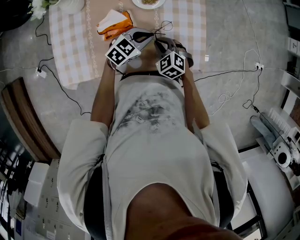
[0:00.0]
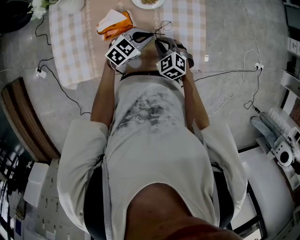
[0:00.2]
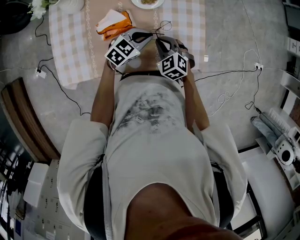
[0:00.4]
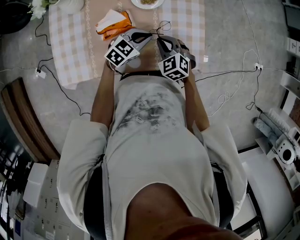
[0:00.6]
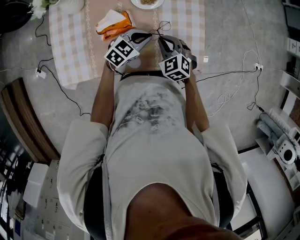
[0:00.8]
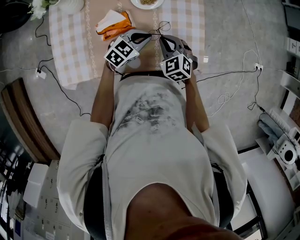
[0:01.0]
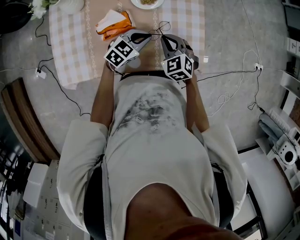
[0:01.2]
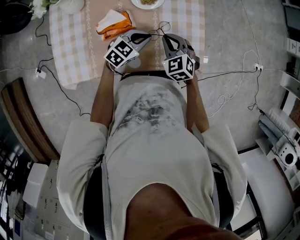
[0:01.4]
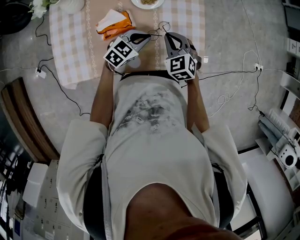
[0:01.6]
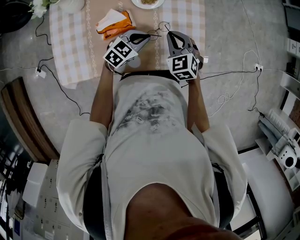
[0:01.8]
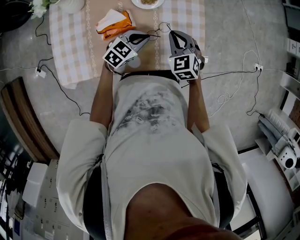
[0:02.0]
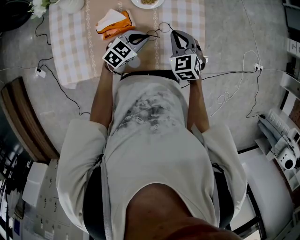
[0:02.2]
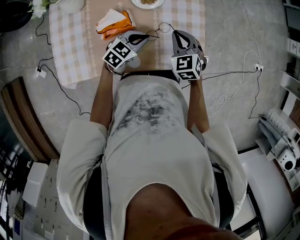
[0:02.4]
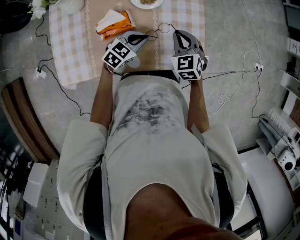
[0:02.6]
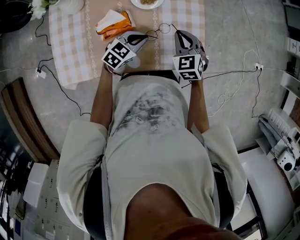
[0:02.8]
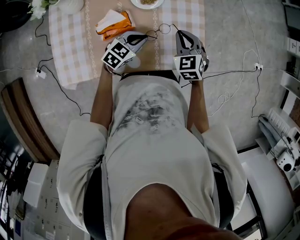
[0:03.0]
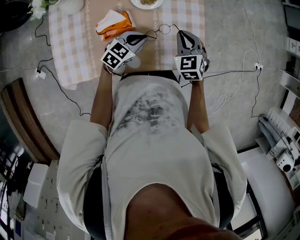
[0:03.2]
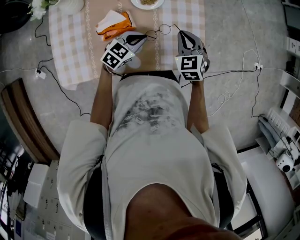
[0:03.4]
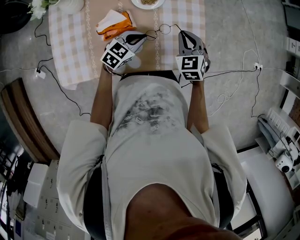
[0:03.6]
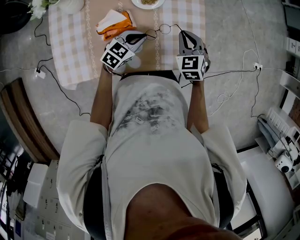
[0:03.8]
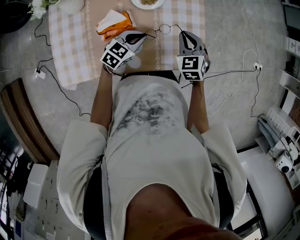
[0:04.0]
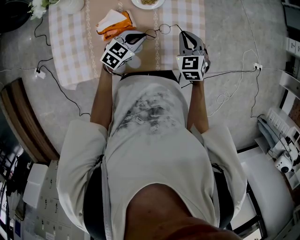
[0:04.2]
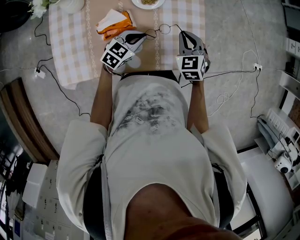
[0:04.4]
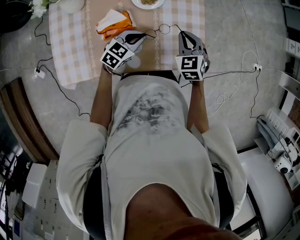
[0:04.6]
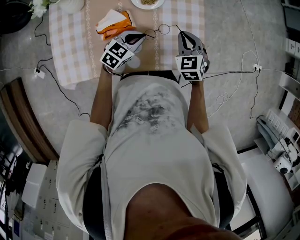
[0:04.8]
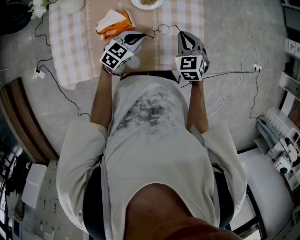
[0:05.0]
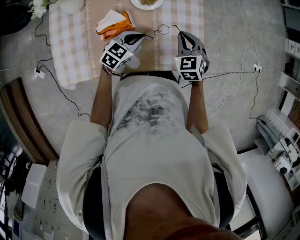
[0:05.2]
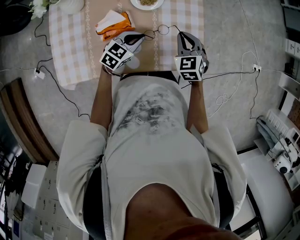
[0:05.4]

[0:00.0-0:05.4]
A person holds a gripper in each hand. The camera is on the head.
0:00.0 to 0:01.4: The right gripper moves upward, roughly 5 cm.
0:01.4 to 0:02.8: The right gripper moves approximately 5 cm.
0:02.8 to 0:04.0: The grippers stay close to where they were, moving slightly.
0:04.0 to 0:05.4: Neither gripper changes place.

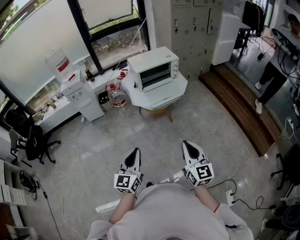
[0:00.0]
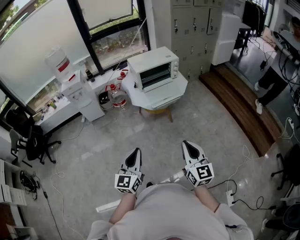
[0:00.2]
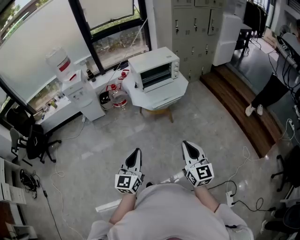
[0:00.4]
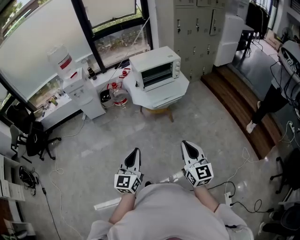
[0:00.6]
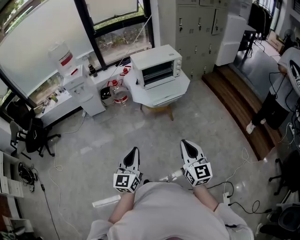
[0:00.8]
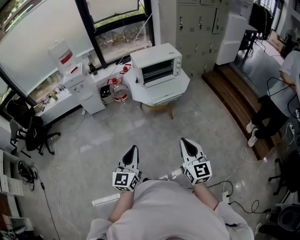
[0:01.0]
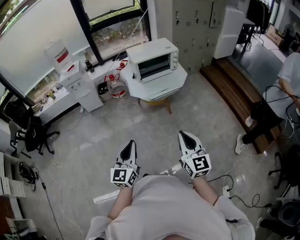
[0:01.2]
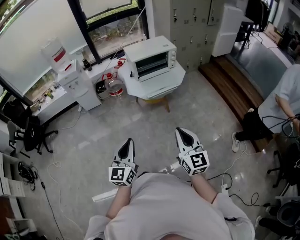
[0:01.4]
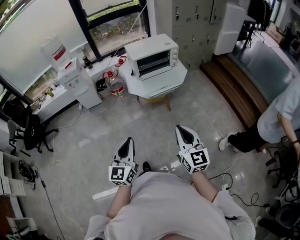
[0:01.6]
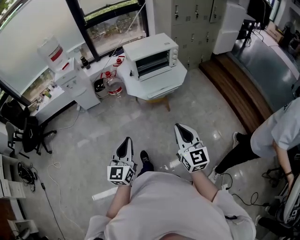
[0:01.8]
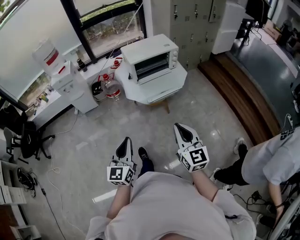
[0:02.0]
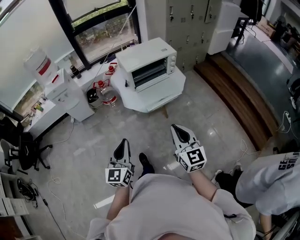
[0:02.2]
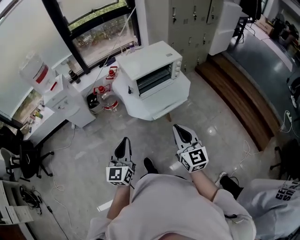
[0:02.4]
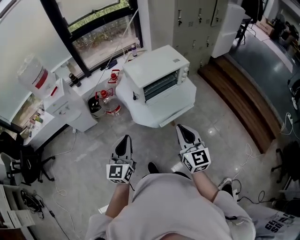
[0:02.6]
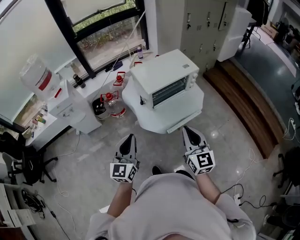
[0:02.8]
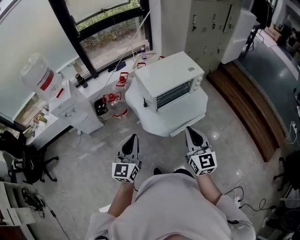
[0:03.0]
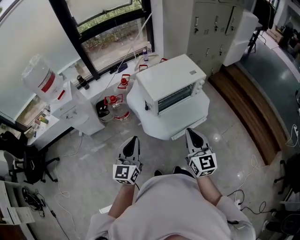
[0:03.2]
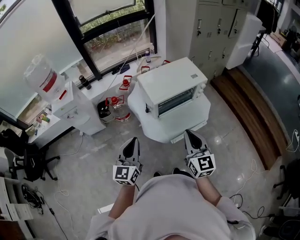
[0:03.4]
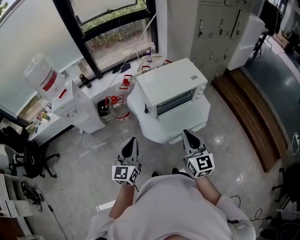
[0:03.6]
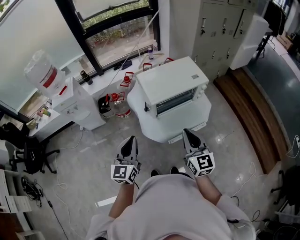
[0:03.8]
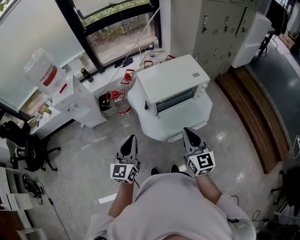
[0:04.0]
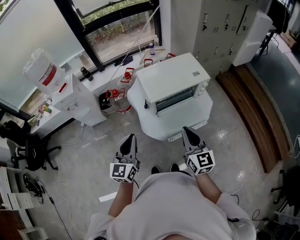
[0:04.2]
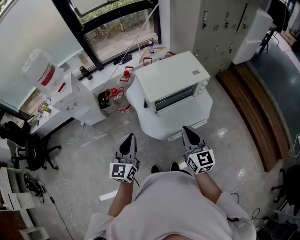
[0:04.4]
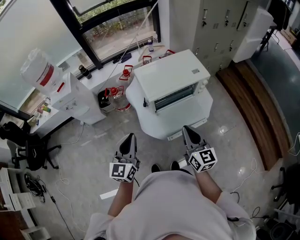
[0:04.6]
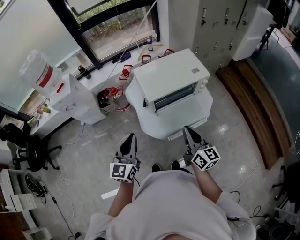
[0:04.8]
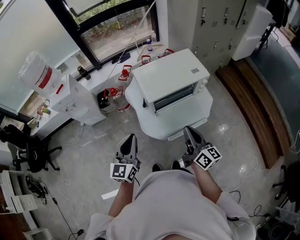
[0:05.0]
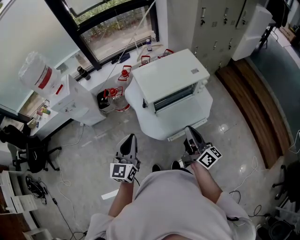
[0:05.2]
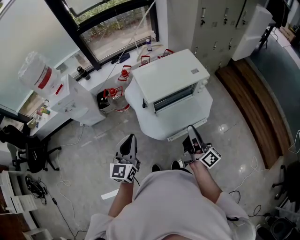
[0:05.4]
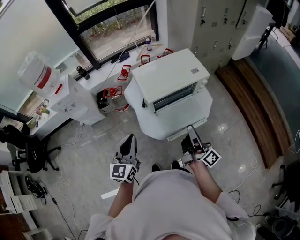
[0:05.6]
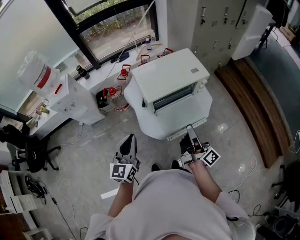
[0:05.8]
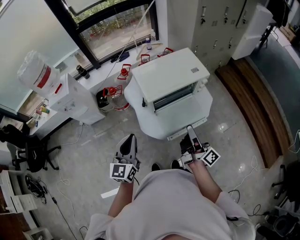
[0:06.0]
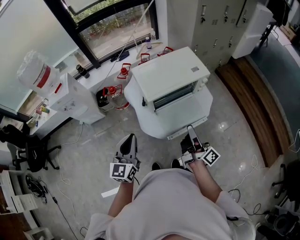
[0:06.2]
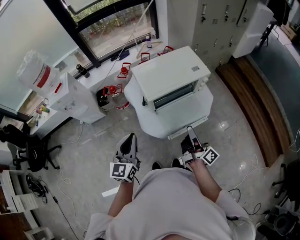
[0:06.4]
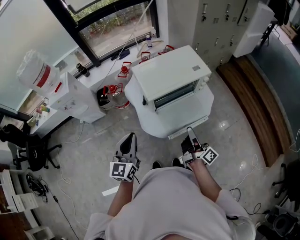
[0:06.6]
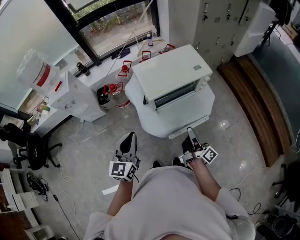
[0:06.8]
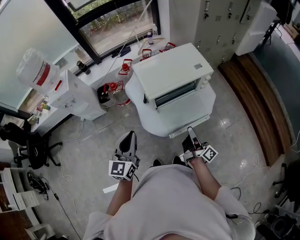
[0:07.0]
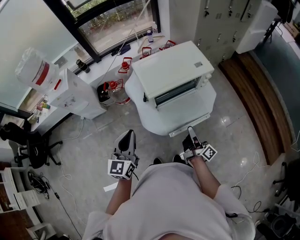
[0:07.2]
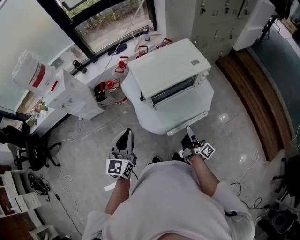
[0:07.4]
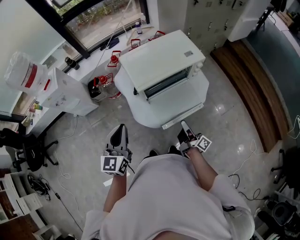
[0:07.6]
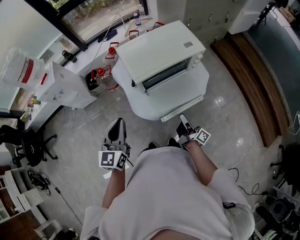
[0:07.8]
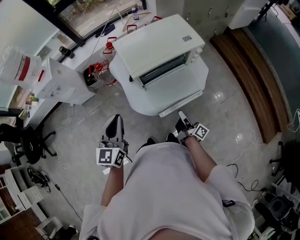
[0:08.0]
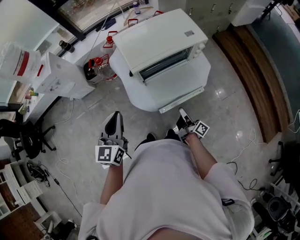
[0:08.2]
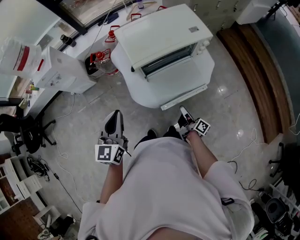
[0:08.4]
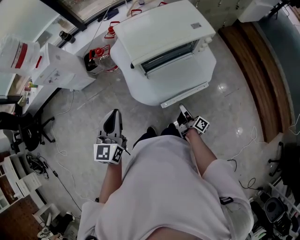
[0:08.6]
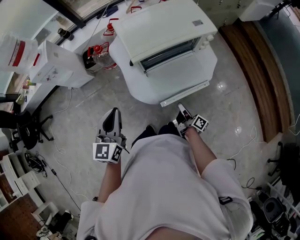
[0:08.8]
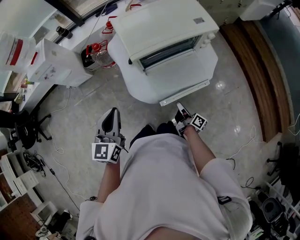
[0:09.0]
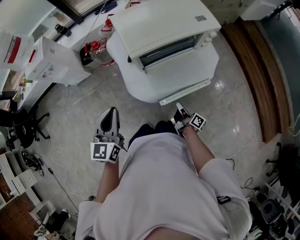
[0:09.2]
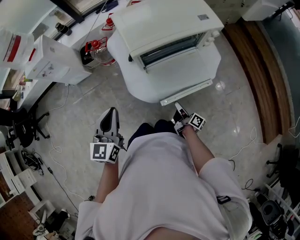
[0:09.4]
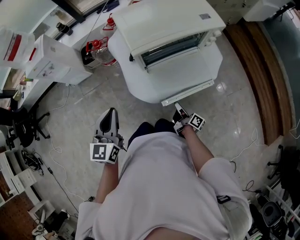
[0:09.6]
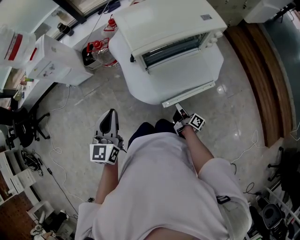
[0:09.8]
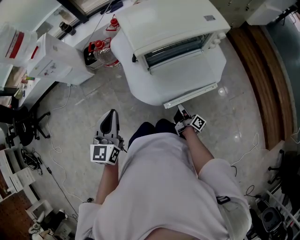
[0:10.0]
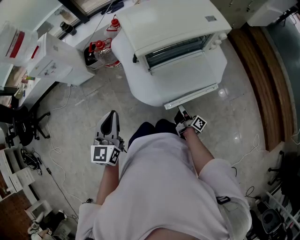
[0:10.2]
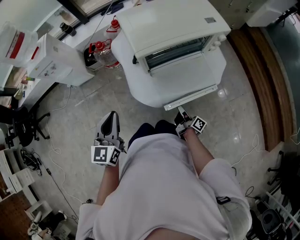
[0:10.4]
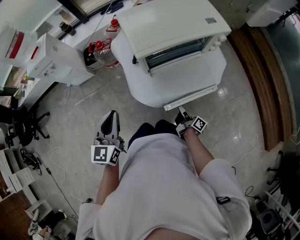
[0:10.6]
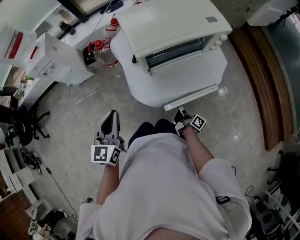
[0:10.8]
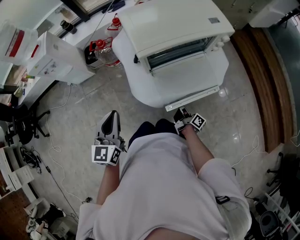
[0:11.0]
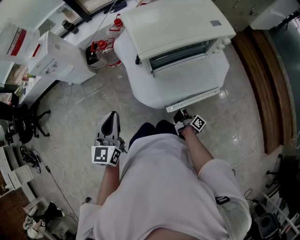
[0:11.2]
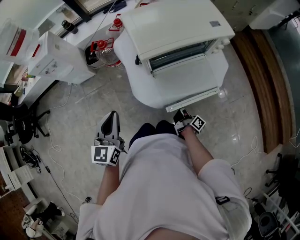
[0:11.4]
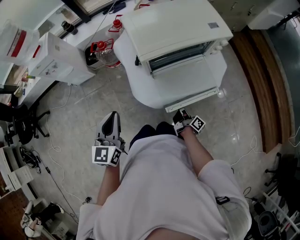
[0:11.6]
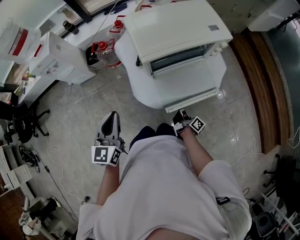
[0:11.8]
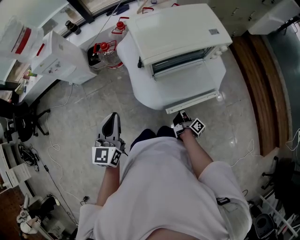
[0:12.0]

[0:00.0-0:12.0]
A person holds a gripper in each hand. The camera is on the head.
0:00.0 to 0:01.6: The grippers make only small movements.
0:01.6 to 0:03.0: Both grippers move forward, roughly 35 cm.
0:03.0 to 0:04.4: The left gripper changes place by some 5 cm; the right gripper heads forward, covering about 5 cm.
0:04.4 to 0:06.0: The right gripper rotates around the line of its fingers by some 70 degrees, clockwise from behind.
0:06.0 to 0:07.6: The right gripper travels downward by roughly 20 cm.
0:07.6 to 0:09.0: The left gripper travels downward by roughly 5 cm. The right gripper travels downward by some 15 cm.
0:09.0 to 0:10.4: Both grippers travel together downward, approximately 5 cm. The right gripper opens up.
0:10.4 to 0:12.0: The grippers move only a little.

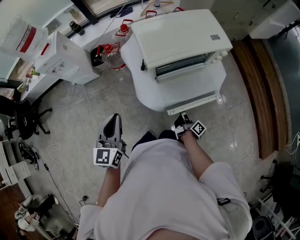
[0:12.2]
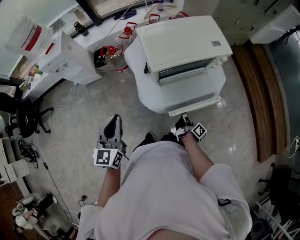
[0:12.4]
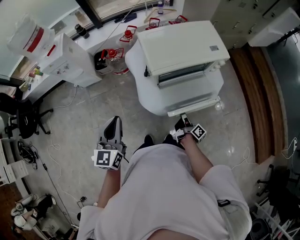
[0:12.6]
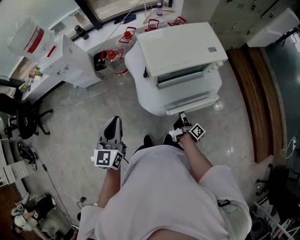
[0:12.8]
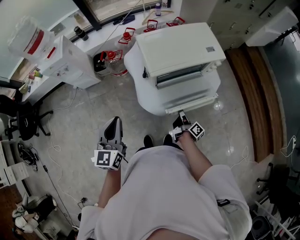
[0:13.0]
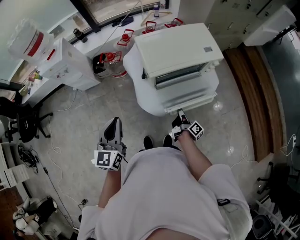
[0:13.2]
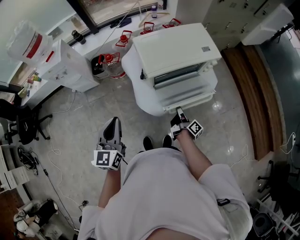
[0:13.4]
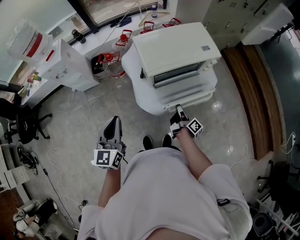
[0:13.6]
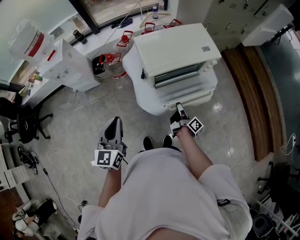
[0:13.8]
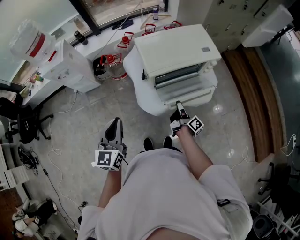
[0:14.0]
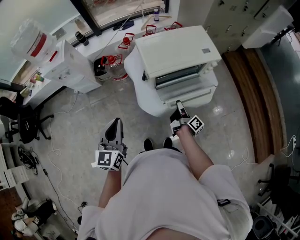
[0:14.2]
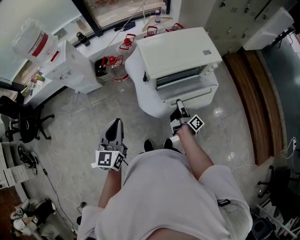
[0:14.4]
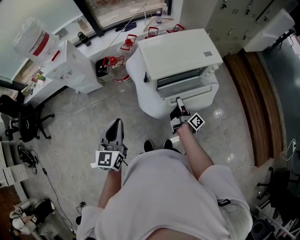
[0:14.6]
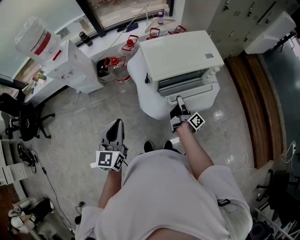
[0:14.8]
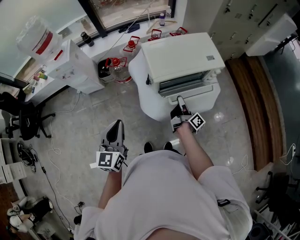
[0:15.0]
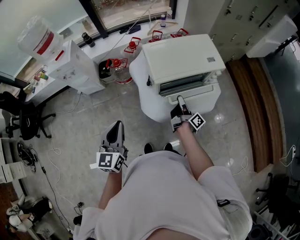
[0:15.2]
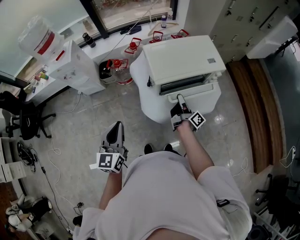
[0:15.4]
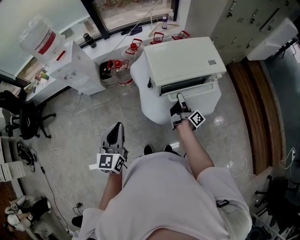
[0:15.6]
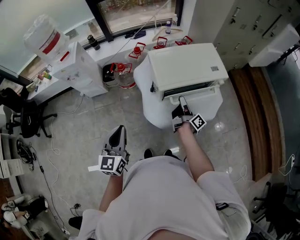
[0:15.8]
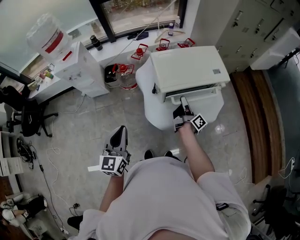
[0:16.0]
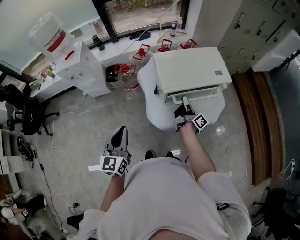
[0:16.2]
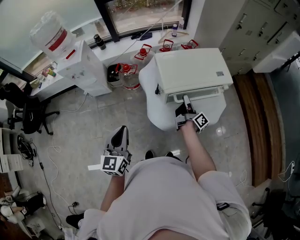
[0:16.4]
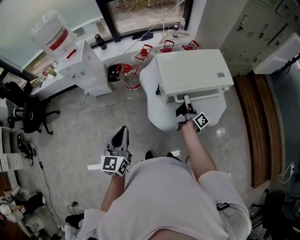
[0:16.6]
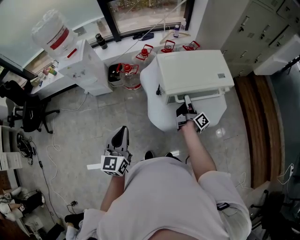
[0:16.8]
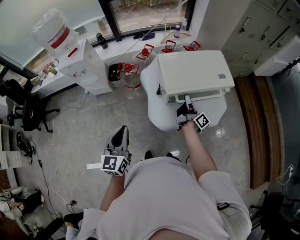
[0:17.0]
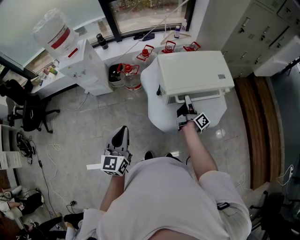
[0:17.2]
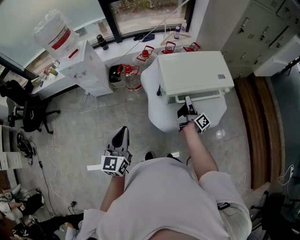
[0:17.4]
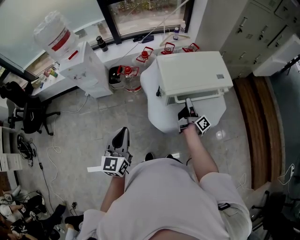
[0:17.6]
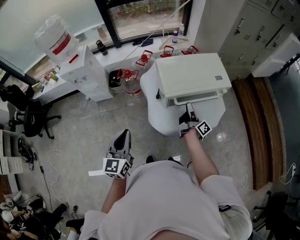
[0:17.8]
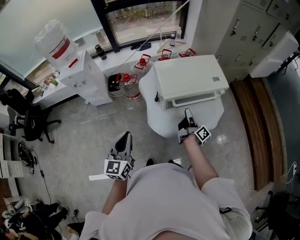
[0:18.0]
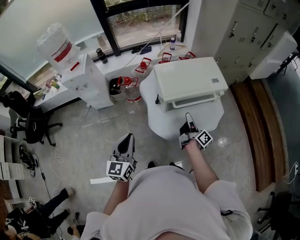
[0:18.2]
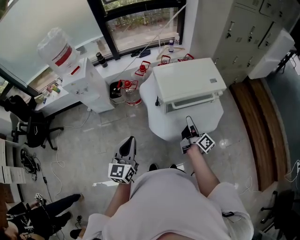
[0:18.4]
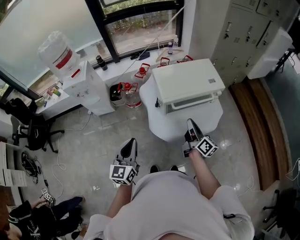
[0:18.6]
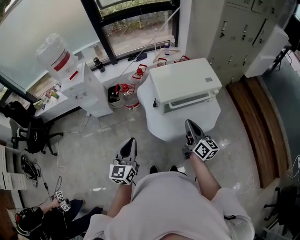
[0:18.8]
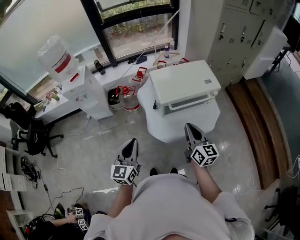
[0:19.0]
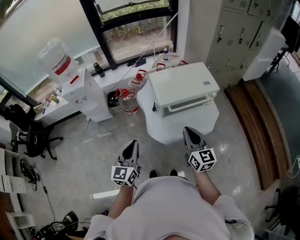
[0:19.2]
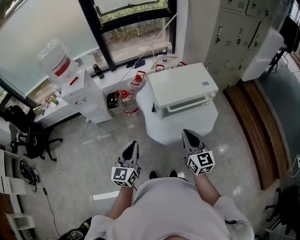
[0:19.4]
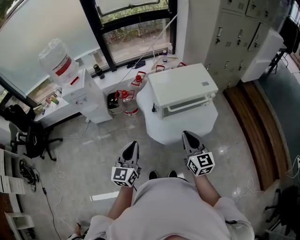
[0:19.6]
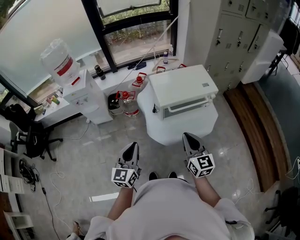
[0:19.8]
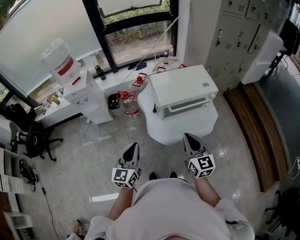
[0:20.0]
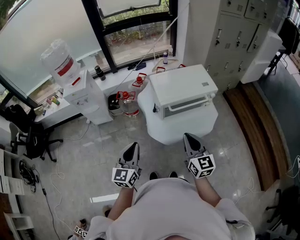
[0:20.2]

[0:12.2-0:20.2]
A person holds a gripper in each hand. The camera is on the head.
0:12.2 to 0:13.8: The right gripper goes roughly 10 cm upward, while the left gripper shifts roughly 5 cm upward.
0:13.8 to 0:15.4: The right gripper moves forward and upward, roughly 10 cm.
0:15.4 to 0:17.0: The right gripper shifts roughly 5 cm forward.
0:17.0 to 0:18.6: The right gripper moves backward and upward, about 15 cm, rotates about 30 degrees, and closes up.
0:18.6 to 0:20.2: The right gripper is displaced backward and upward by approximately 15 cm, and rolls counterclockwise, seen from behind, by roughly 50 degrees.
